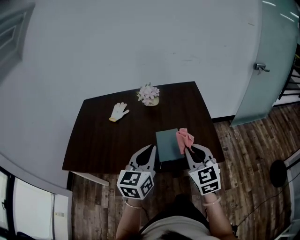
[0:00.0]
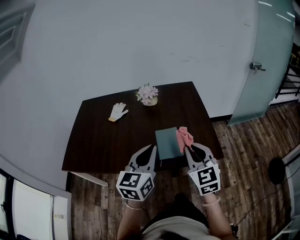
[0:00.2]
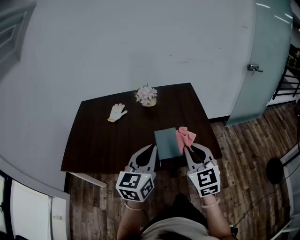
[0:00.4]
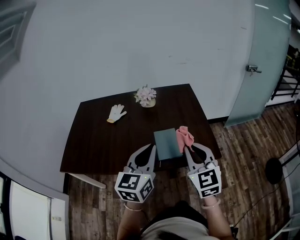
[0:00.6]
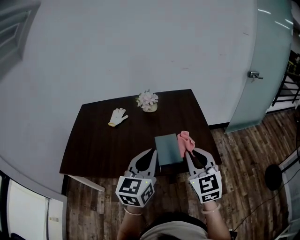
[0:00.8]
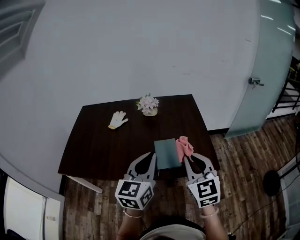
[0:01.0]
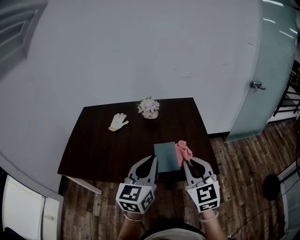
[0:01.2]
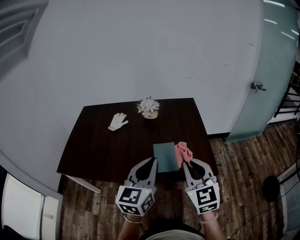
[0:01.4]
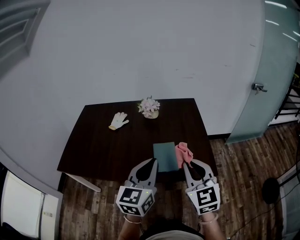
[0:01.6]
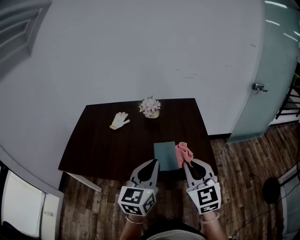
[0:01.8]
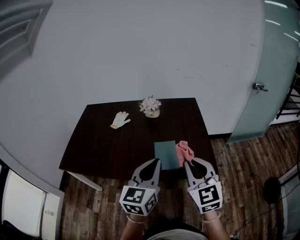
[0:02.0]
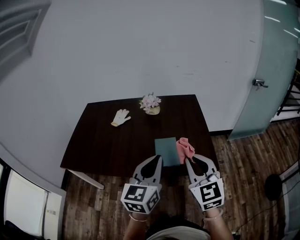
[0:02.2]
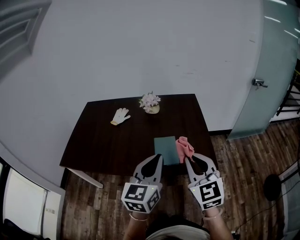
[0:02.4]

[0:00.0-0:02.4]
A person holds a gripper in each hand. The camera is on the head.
0:00.0 to 0:01.2: Both grippers move upward, roughly 5 cm.
0:01.2 to 0:02.4: The left gripper shifts by approximately 5 cm.

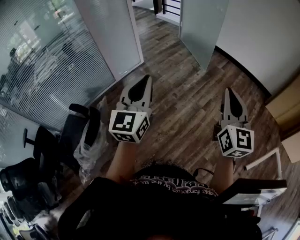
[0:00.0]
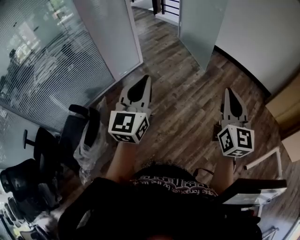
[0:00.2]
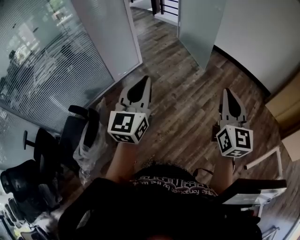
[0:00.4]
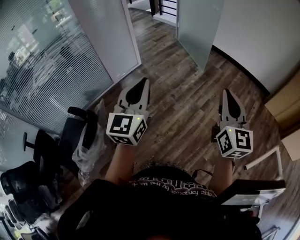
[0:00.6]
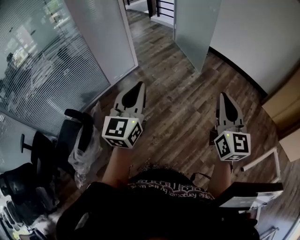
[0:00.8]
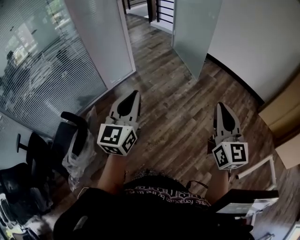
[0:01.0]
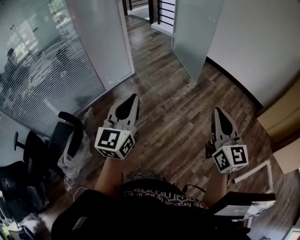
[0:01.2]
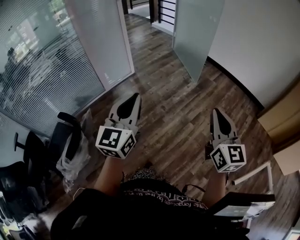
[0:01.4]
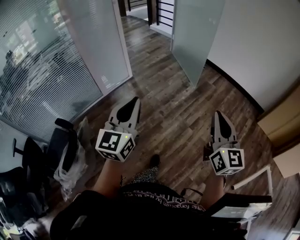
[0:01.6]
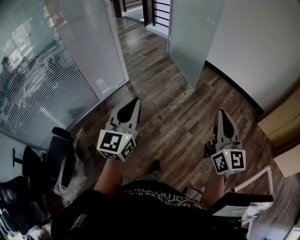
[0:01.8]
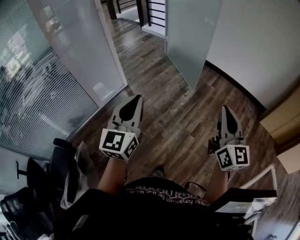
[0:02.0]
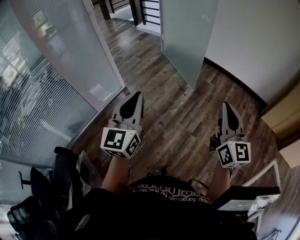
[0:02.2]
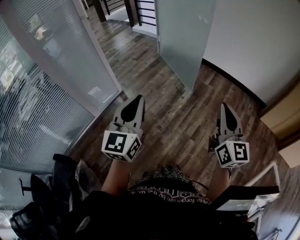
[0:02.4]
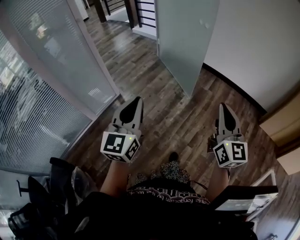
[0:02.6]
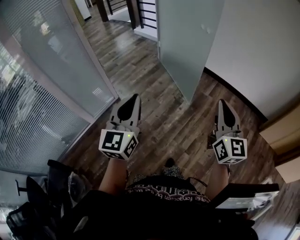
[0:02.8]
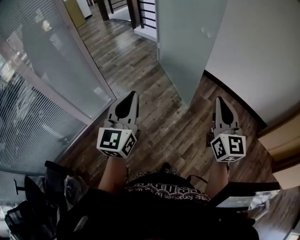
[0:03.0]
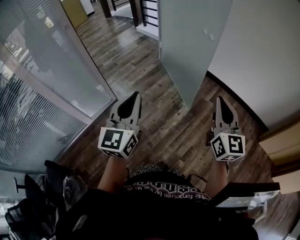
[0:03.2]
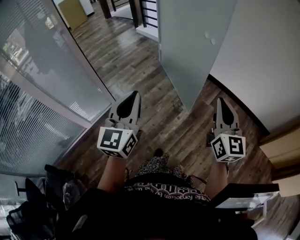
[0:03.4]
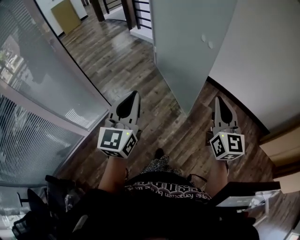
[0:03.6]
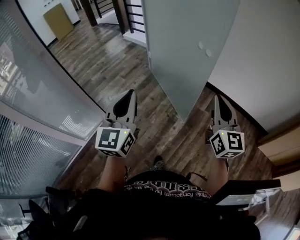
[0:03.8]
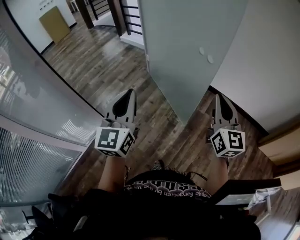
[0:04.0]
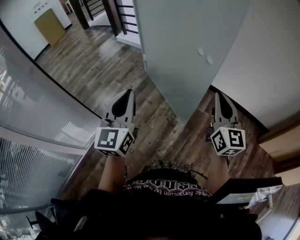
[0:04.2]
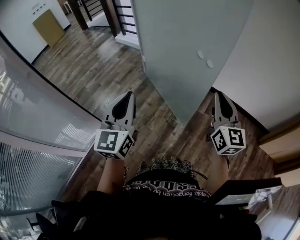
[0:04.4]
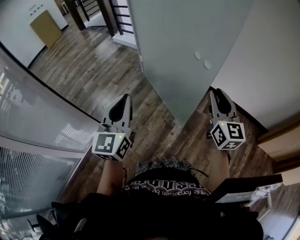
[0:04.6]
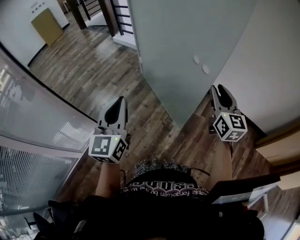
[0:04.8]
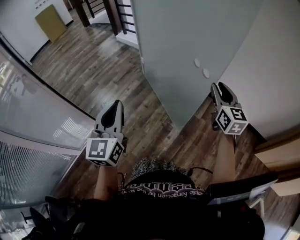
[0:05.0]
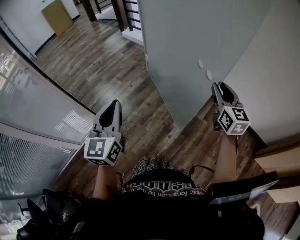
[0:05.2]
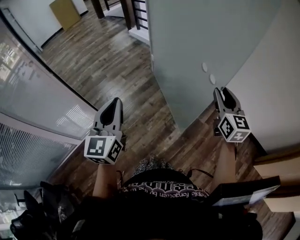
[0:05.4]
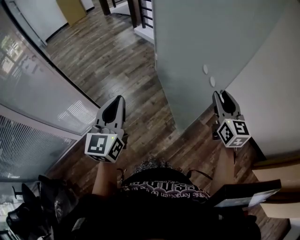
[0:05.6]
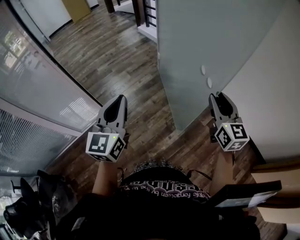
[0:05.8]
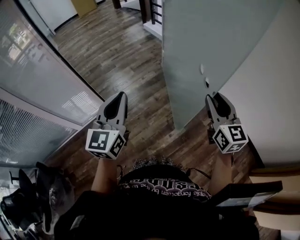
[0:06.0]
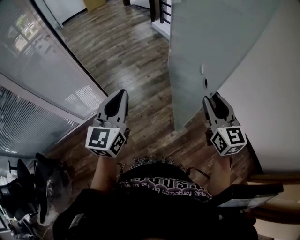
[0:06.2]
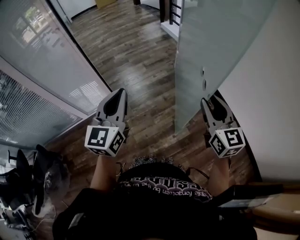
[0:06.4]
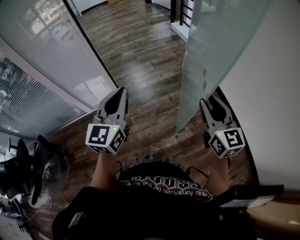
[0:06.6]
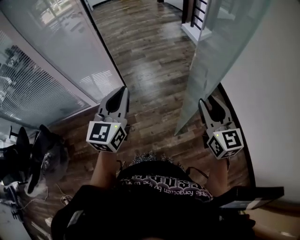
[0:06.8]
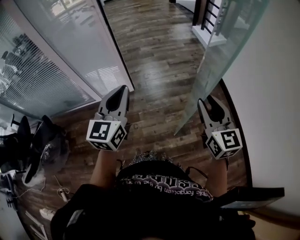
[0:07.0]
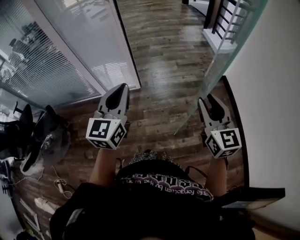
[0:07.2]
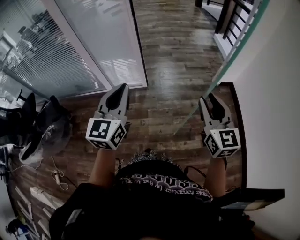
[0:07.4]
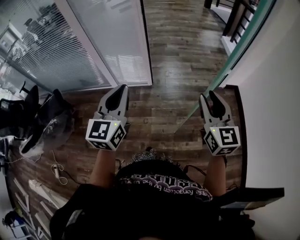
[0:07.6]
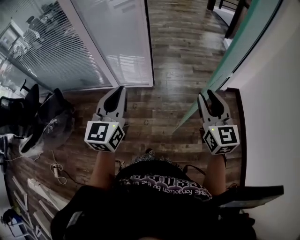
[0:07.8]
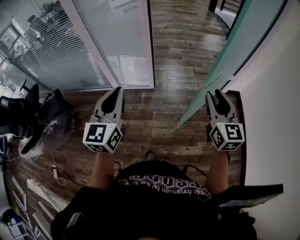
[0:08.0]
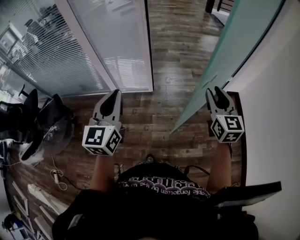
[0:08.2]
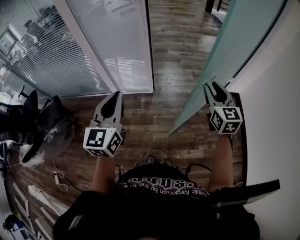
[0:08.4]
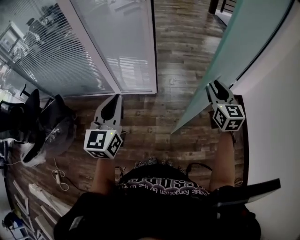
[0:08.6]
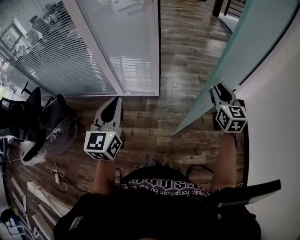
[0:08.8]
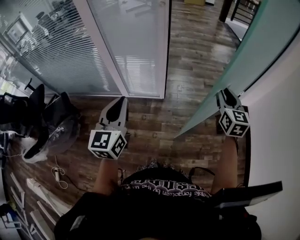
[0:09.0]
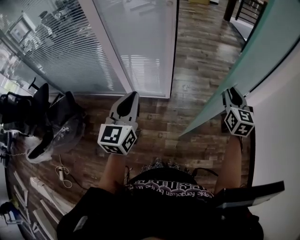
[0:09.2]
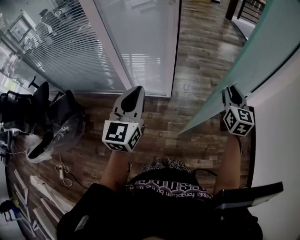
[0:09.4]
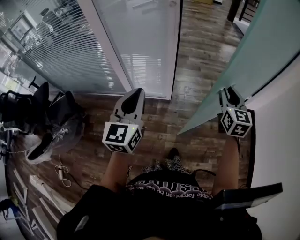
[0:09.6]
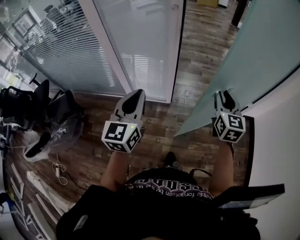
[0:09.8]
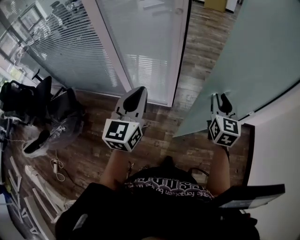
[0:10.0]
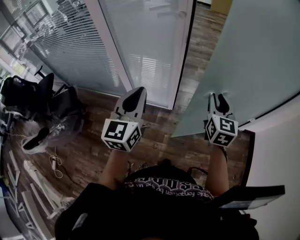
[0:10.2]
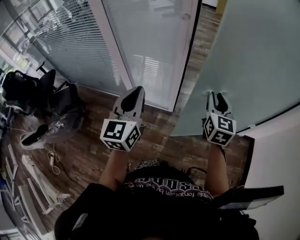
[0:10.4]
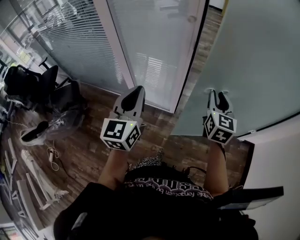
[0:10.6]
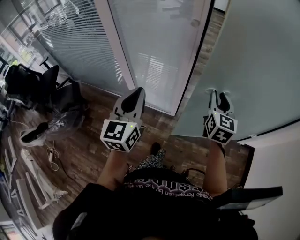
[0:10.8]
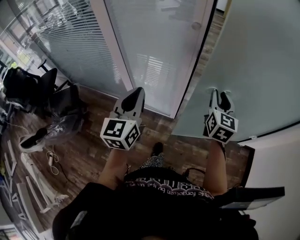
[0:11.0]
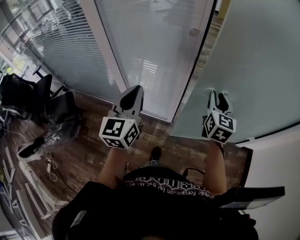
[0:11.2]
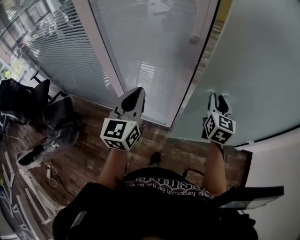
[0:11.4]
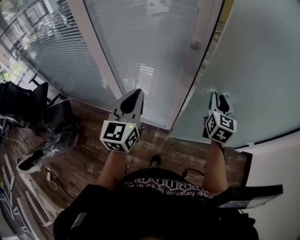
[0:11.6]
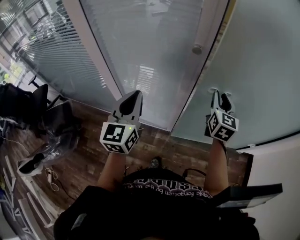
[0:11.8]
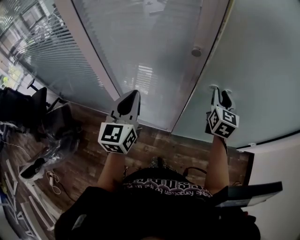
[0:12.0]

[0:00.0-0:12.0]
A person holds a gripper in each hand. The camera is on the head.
0:00.0 to 0:01.6: Both grippers move forward and to the right, about 10 cm.
0:01.6 to 0:03.0: Both grippers are carried forward, about 50 cm.
0:03.0 to 0:04.4: The grippers both shift forward by roughly 35 cm.
0:04.4 to 0:06.0: The right gripper travels forward by approximately 10 cm, changes its angle by about 30 degrees, and opens.
0:06.0 to 0:07.6: The right gripper moves approximately 25 cm, and changes its angle by some 30 degrees. The left gripper moves some 25 cm, and rotates roughly 30 degrees.
0:07.6 to 0:09.0: The left gripper is displaced to the left and forward by roughly 15 cm. Meanwhile the right gripper travels forward by some 20 cm.
0:09.0 to 0:10.4: The left gripper goes approximately 15 cm forward; the right gripper travels forward and to the left by approximately 20 cm.
0:10.4 to 0:12.0: The grippers both shift forward by roughly 25 cm.

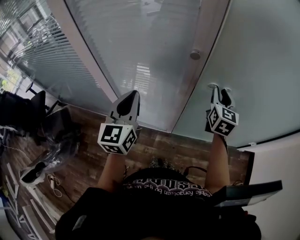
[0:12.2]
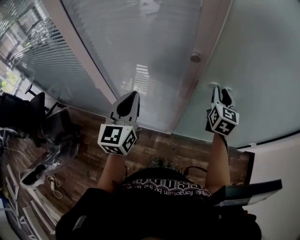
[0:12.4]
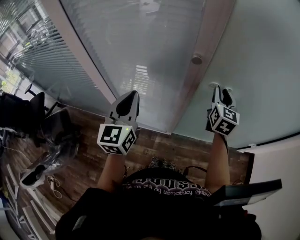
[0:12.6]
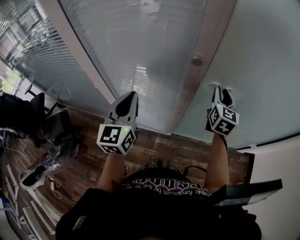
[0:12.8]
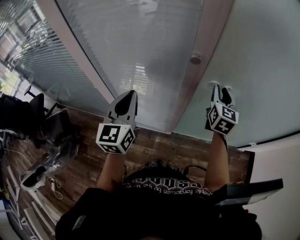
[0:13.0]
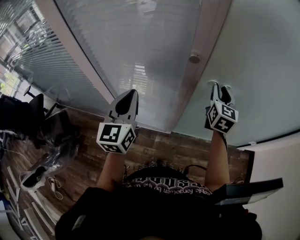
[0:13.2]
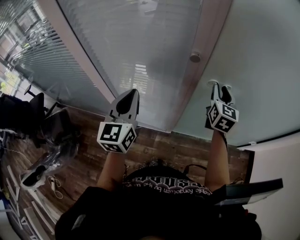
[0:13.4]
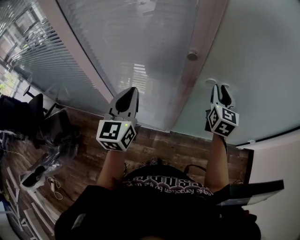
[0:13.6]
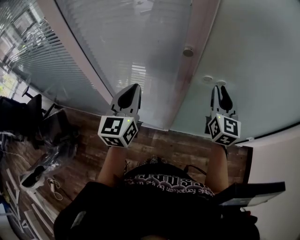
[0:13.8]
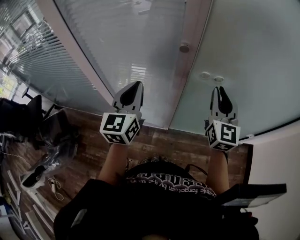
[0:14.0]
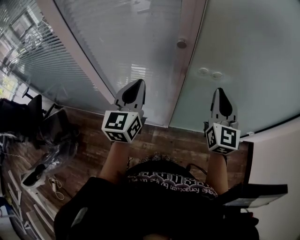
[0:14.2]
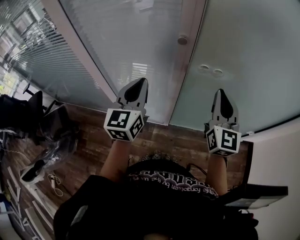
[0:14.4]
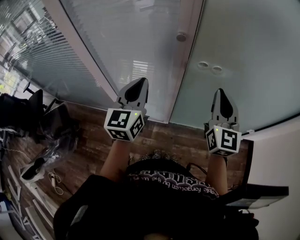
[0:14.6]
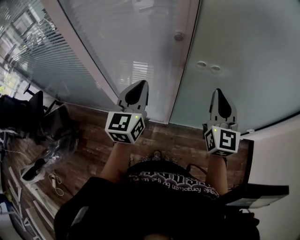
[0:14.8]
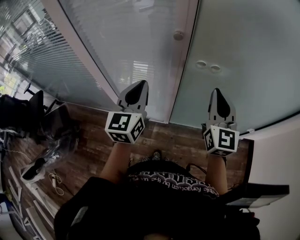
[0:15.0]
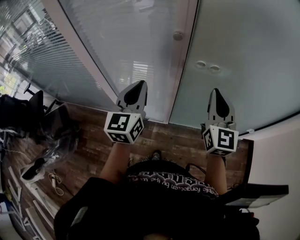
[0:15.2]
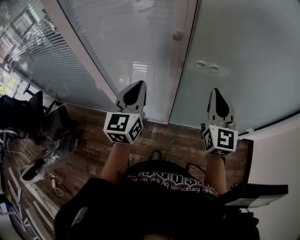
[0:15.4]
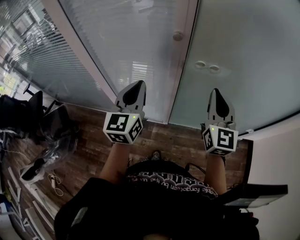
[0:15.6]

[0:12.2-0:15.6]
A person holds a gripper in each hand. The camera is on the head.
0:12.2 to 0:13.8: The right gripper ends up about 5 cm from where it was.
0:13.8 to 0:15.6: The right gripper is displaced backward by some 10 cm, and closes its fingers. The left gripper ends up about 5 cm from where it was.

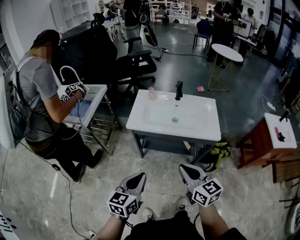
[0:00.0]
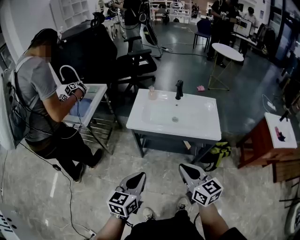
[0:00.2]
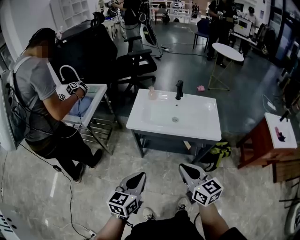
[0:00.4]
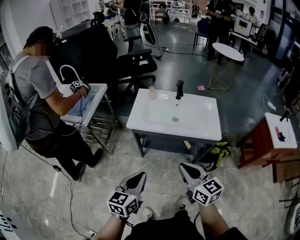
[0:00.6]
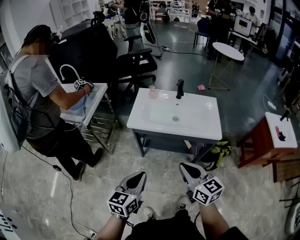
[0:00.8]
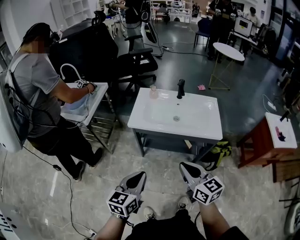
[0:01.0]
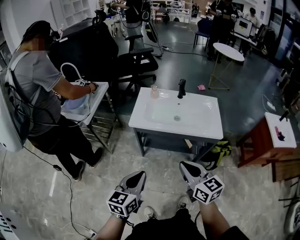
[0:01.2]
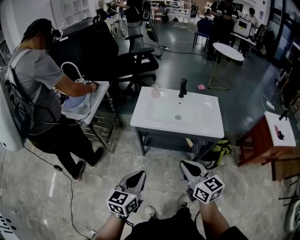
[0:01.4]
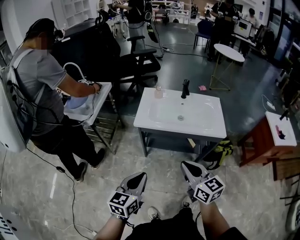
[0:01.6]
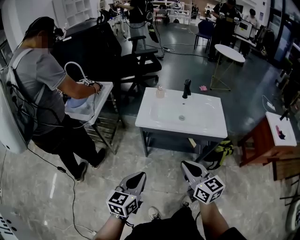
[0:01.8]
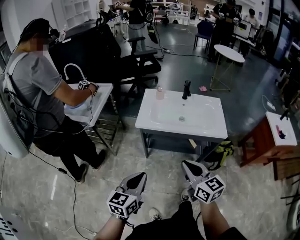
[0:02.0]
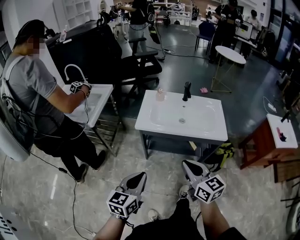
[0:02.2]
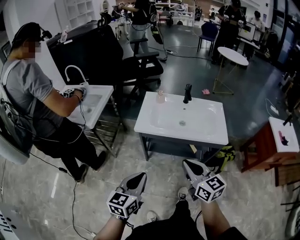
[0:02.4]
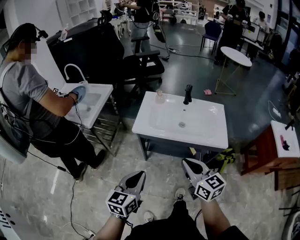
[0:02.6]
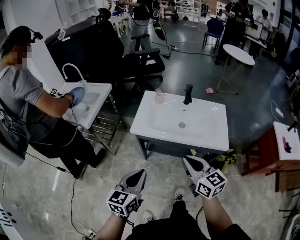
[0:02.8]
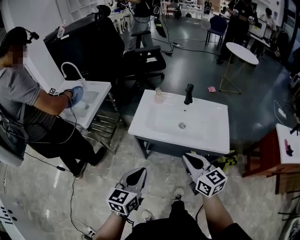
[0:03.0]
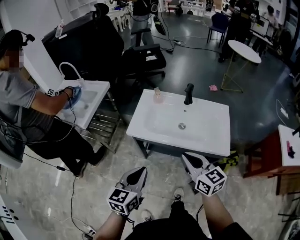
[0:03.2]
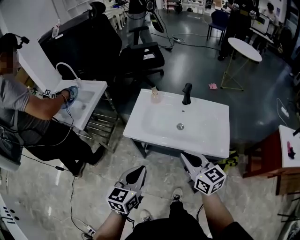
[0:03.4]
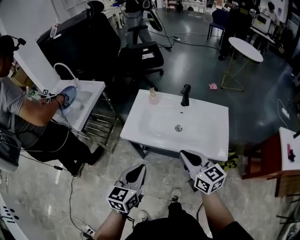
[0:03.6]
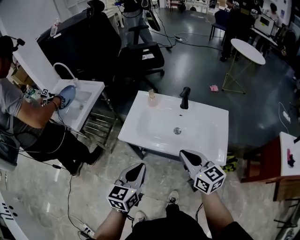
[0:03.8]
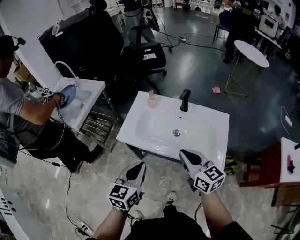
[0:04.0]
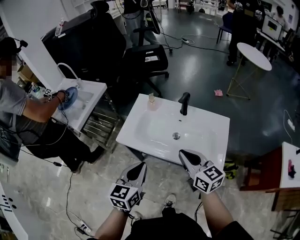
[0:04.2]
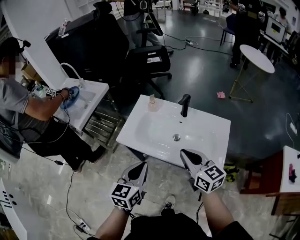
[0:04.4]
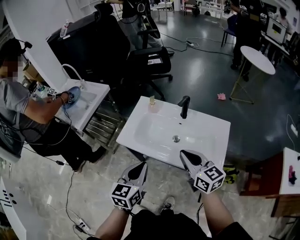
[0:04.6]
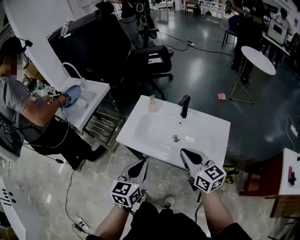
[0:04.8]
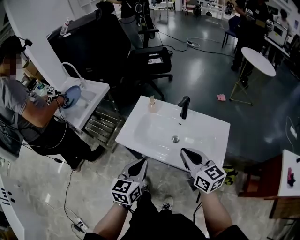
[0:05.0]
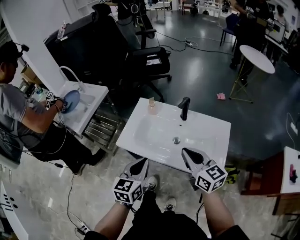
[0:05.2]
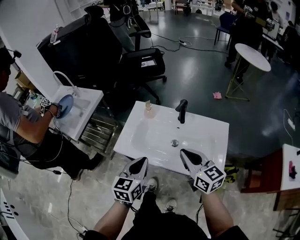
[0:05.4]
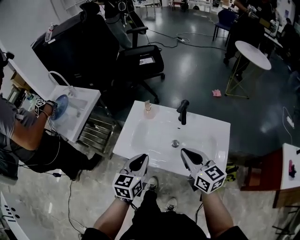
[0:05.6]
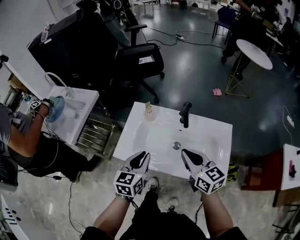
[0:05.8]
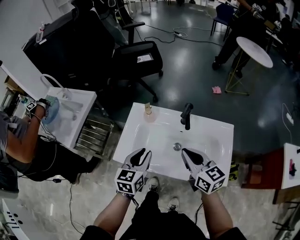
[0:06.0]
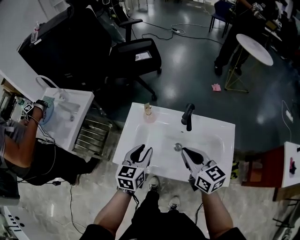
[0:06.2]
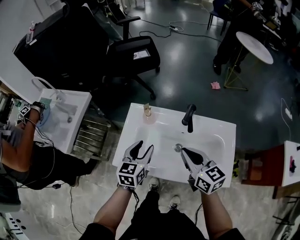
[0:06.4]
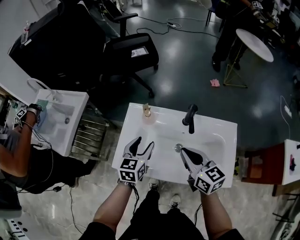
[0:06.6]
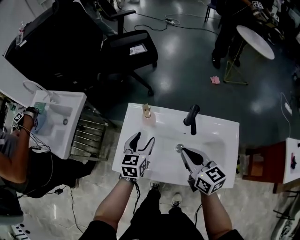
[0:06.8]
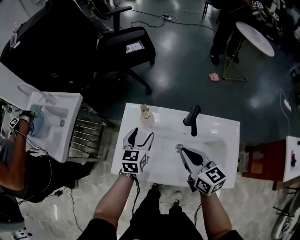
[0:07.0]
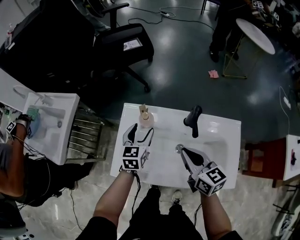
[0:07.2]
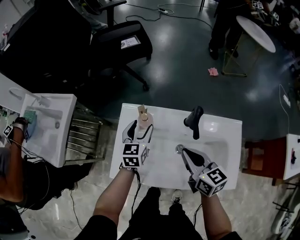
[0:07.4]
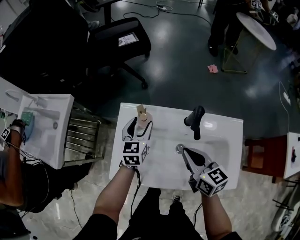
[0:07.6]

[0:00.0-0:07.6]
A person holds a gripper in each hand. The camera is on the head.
0:00.0 to 0:01.6: Both grippers move to the left, roughly 5 cm.
0:01.6 to 0:03.0: Both grippers travel together forward and to the right, approximately 15 cm.
0:03.0 to 0:04.6: The left gripper shifts some 20 cm to the right and forward. The right gripper shifts some 15 cm forward and to the right.
0:04.6 to 0:06.0: The left gripper travels forward by some 20 cm, while the right gripper shifts some 10 cm forward.
0:06.0 to 0:07.6: The left gripper moves forward and downward, about 25 cm, and opens. The right gripper goes some 10 cm forward and downward.
